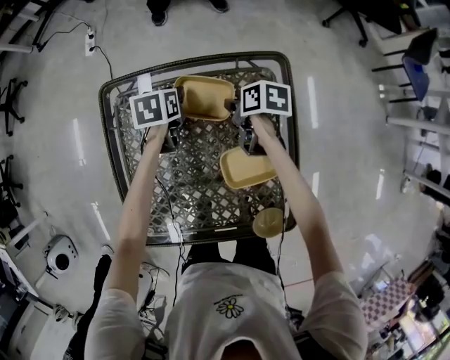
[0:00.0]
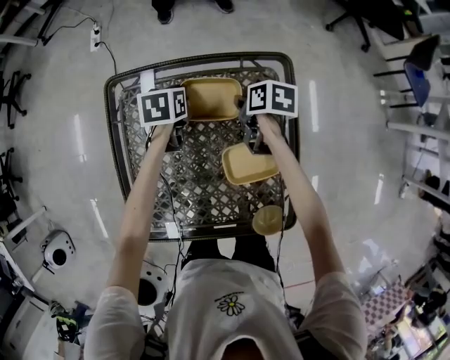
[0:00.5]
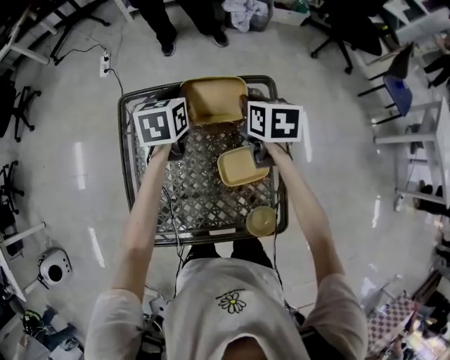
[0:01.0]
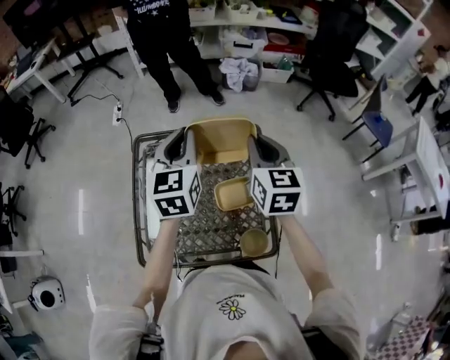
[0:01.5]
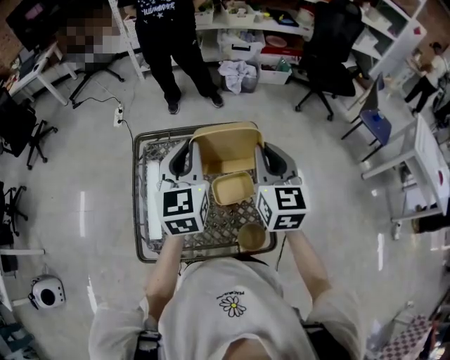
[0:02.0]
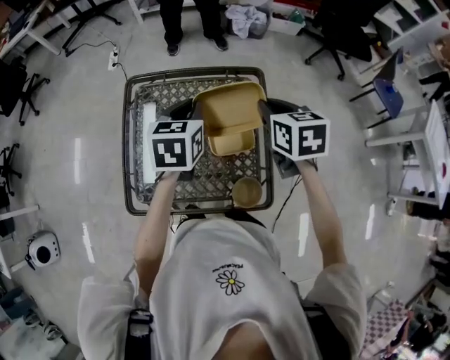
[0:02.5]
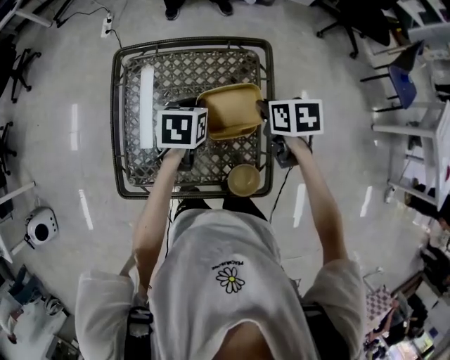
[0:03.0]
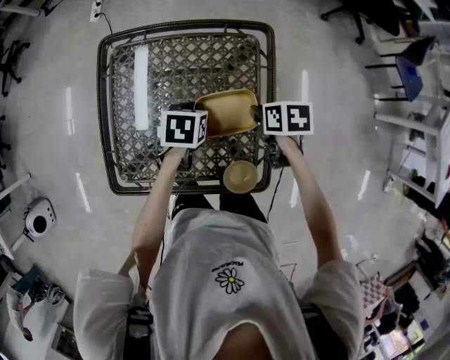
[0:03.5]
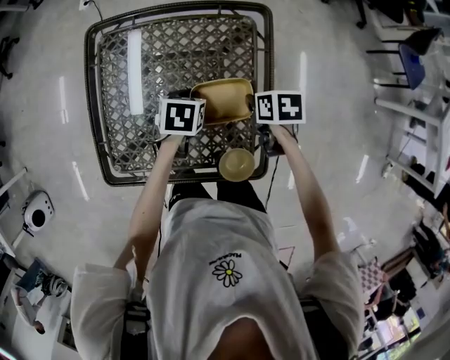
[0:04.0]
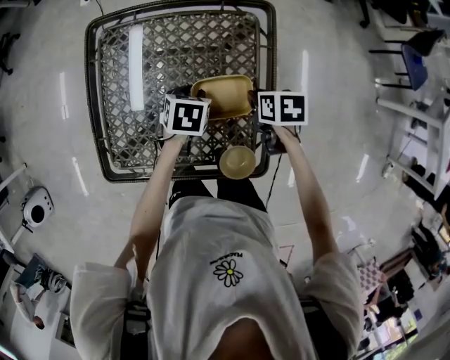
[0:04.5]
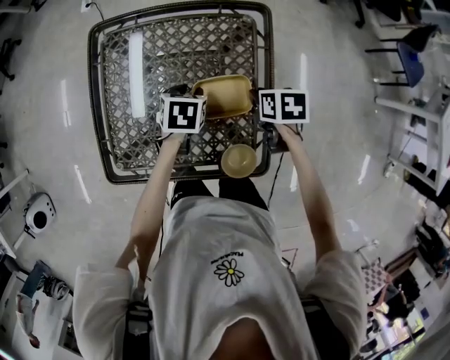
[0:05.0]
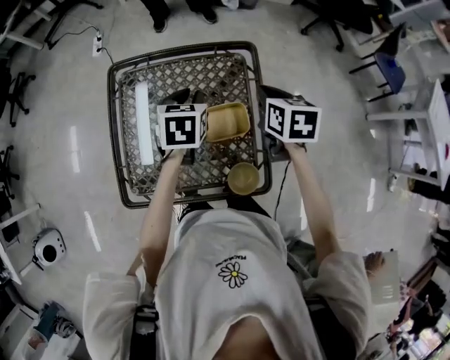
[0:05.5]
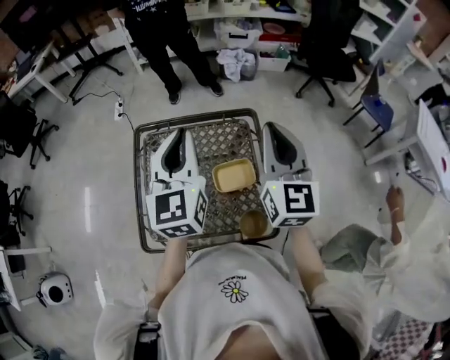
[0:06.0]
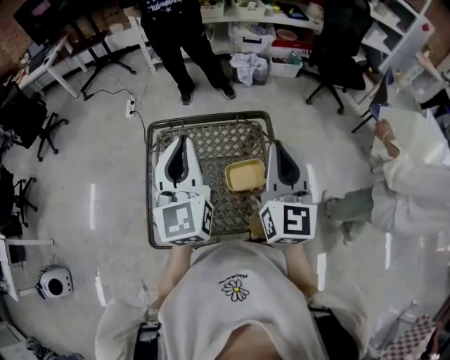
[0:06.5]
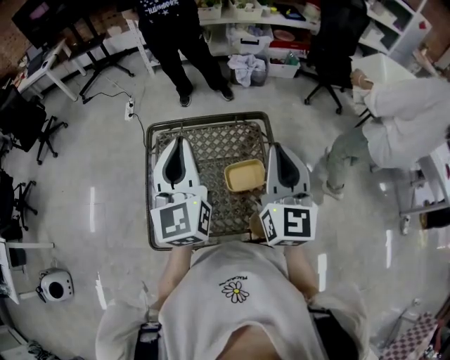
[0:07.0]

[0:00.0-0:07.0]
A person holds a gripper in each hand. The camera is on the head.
0:00.0 to 0:02.0: Both grippers travel together upward and backward, approximately 40 cm. The left gripper tips its fingers upward by approximately 50 degrees, and closes its fingers, while the right gripper points its fingers some 40 degrees further upward.
0:02.0 to 0:03.5: Both grippers travel together downward, roughly 35 cm. The right gripper points its fingers approximately 50 degrees further downward; the left gripper angles its fingers downward, by roughly 60 degrees.
0:03.5 to 0:05.0: The left gripper opens up.
0:05.0 to 0:07.0: Both grippers travel together upward, approximately 40 cm. The right gripper angles its fingers upward, by some 70 degrees. The left gripper tilts its fingers some 70 degrees upward, and closes its fingers.

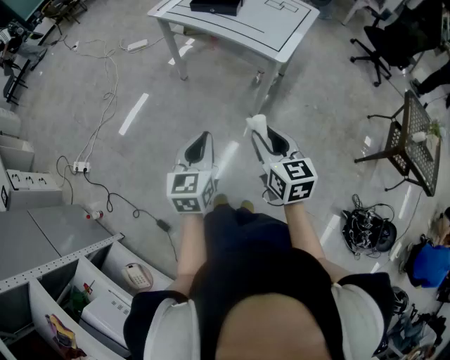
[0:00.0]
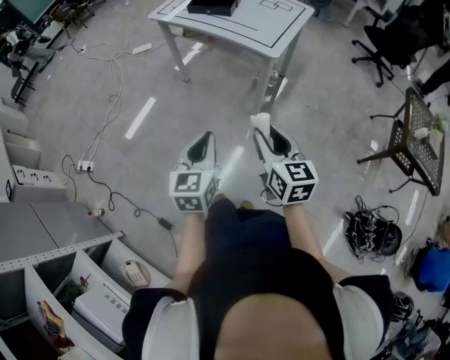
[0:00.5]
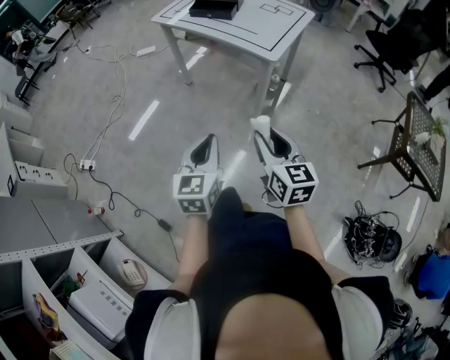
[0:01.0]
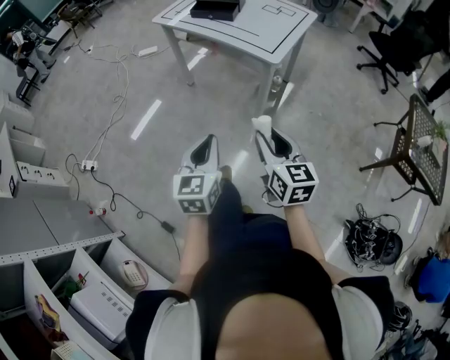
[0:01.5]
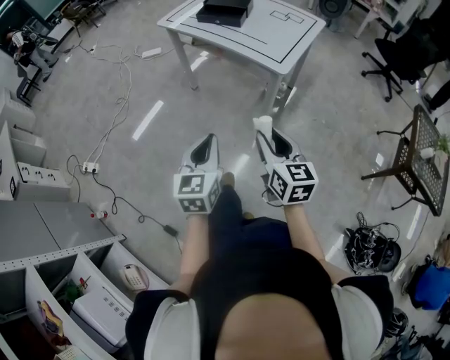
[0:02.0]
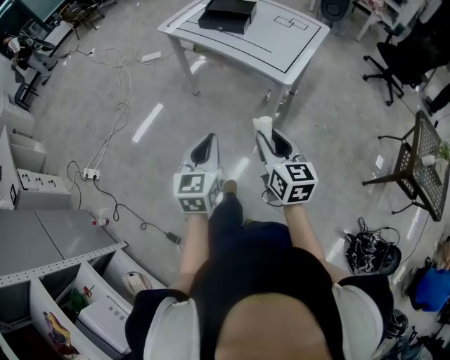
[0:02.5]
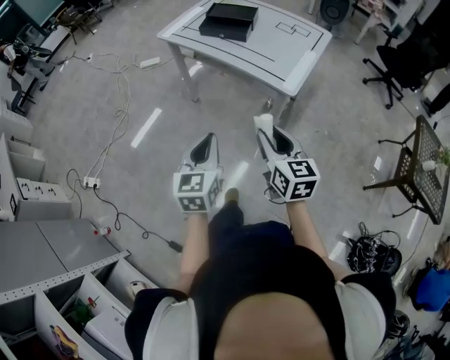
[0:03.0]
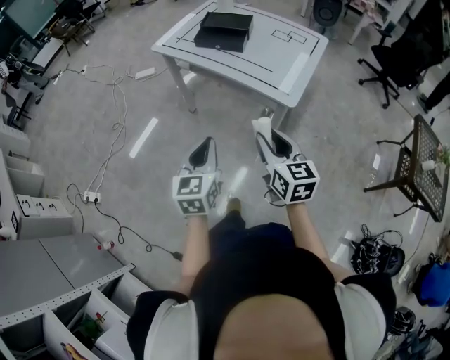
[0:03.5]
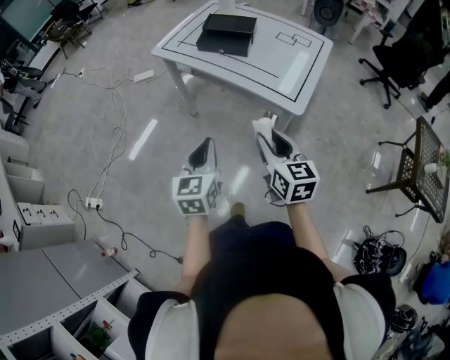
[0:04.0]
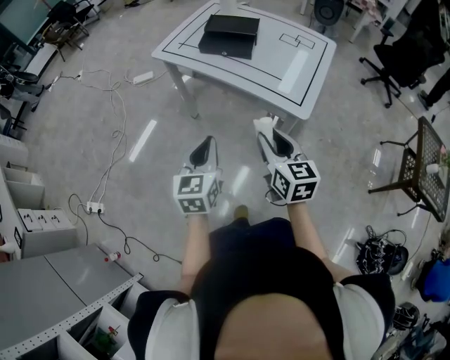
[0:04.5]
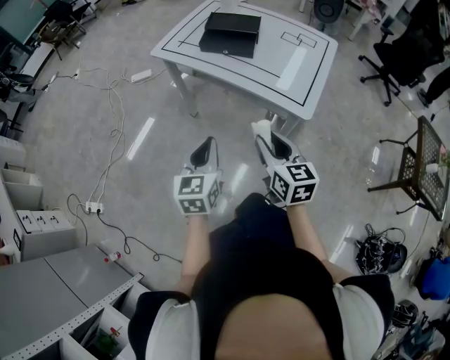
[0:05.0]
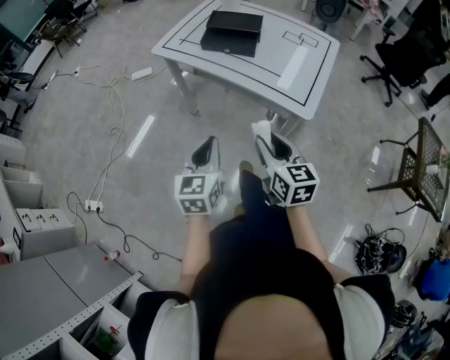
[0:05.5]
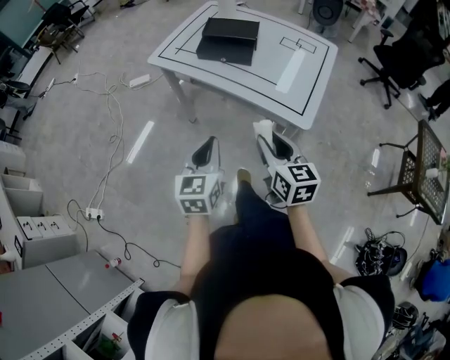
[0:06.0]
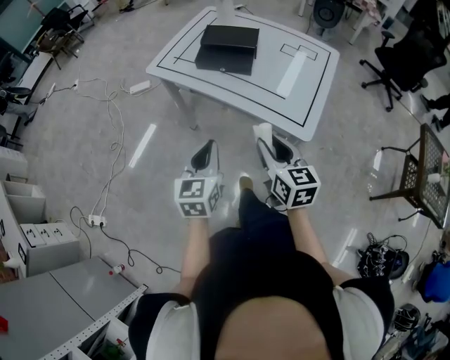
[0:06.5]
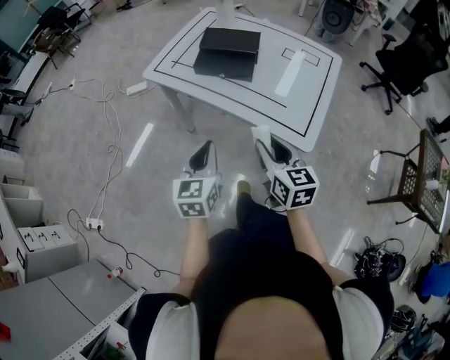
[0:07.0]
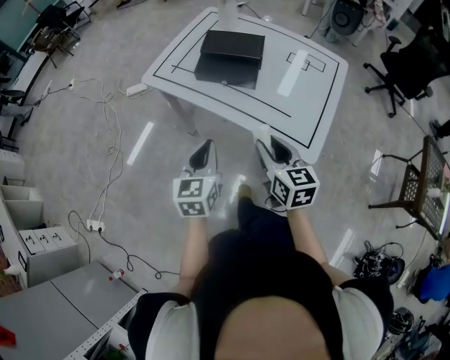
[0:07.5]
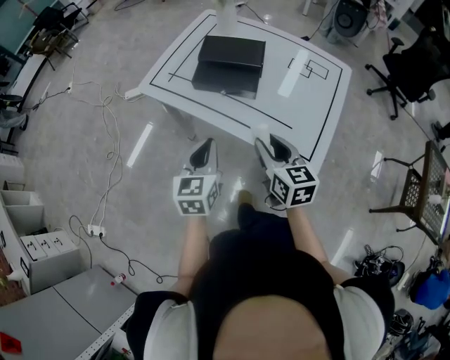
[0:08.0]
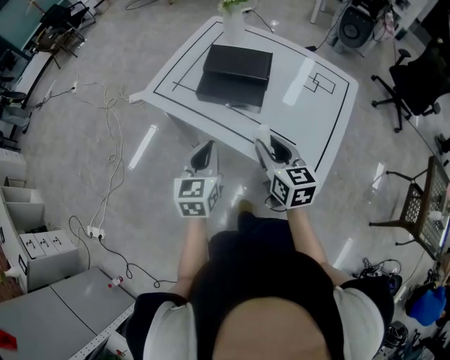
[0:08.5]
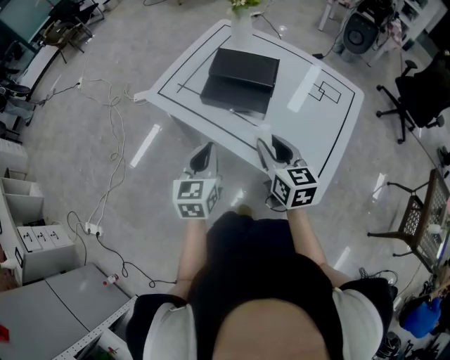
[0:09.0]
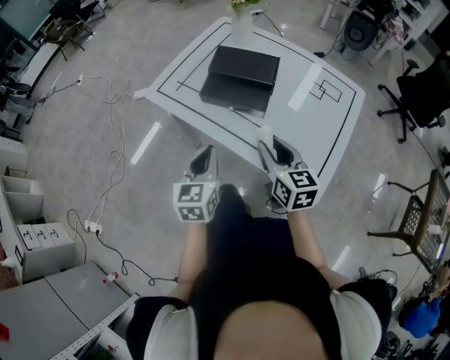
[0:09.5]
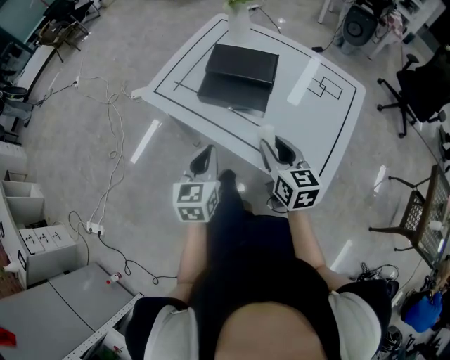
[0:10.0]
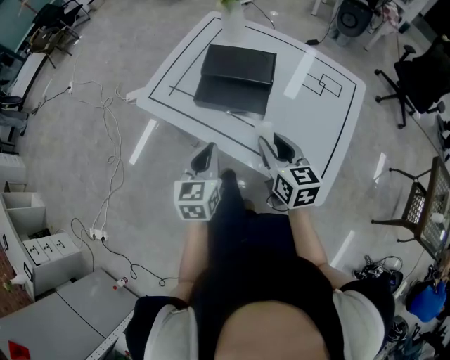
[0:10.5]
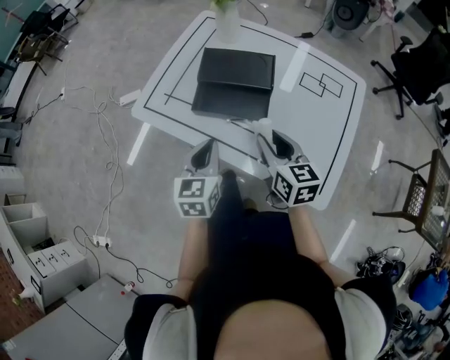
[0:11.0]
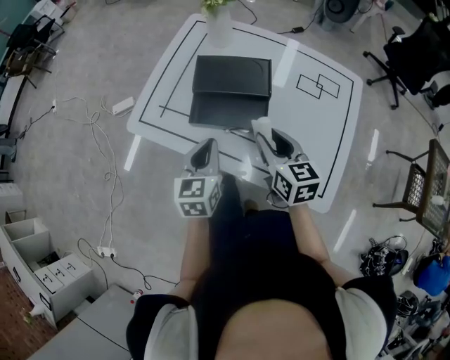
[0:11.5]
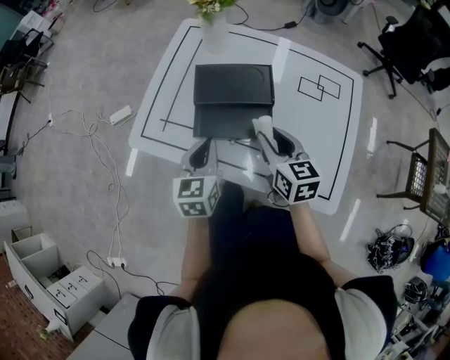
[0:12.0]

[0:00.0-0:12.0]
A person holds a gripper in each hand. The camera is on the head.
0:00.0 to 0:02.0: The grippers both shift to the right by roughly 5 cm.
0:02.0 to 0:04.0: Both grippers travel together forward, roughly 20 cm.
0:04.0 to 0:06.0: Both grippers travel together forward, about 5 cm.
0:06.0 to 0:08.0: The two grippers go about 20 cm forward.
0:08.0 to 0:10.0: The grippers both shift forward by some 5 cm.
0:10.0 to 0:12.0: Both grippers travel together forward, roughly 15 cm.

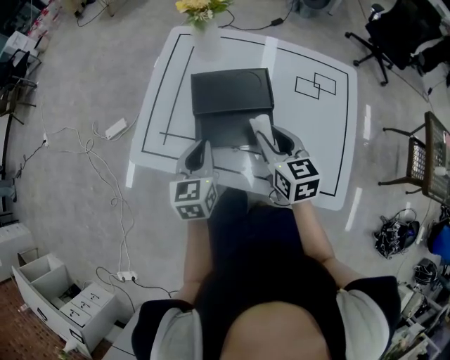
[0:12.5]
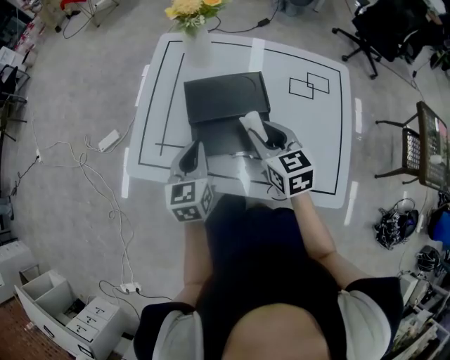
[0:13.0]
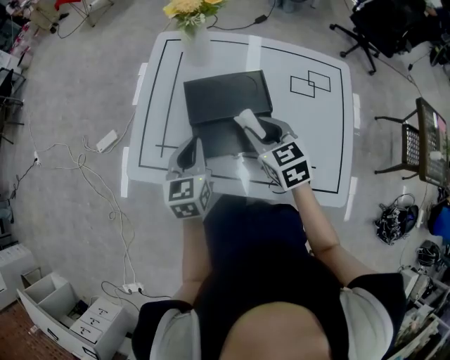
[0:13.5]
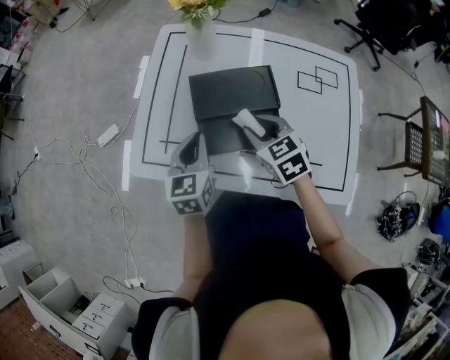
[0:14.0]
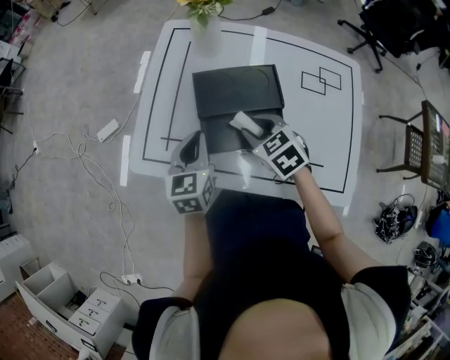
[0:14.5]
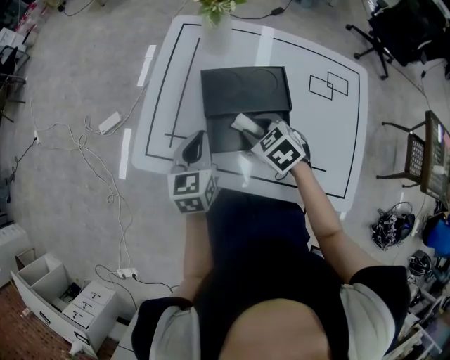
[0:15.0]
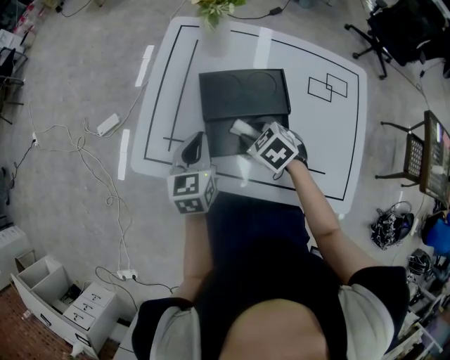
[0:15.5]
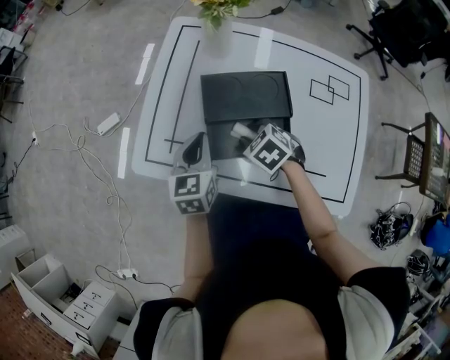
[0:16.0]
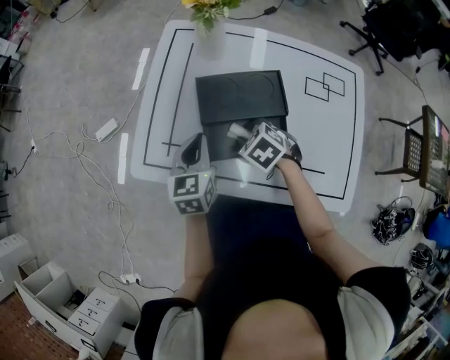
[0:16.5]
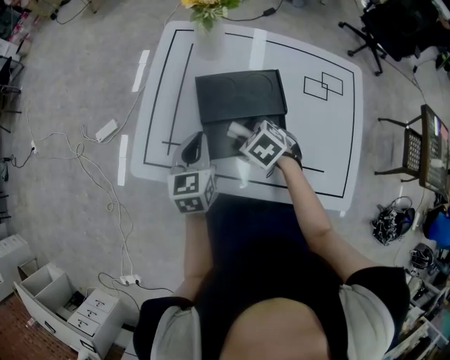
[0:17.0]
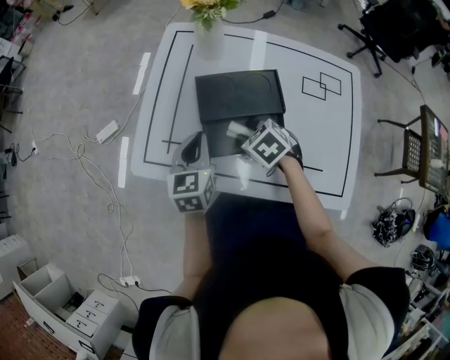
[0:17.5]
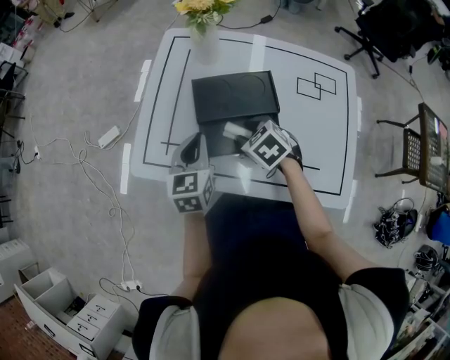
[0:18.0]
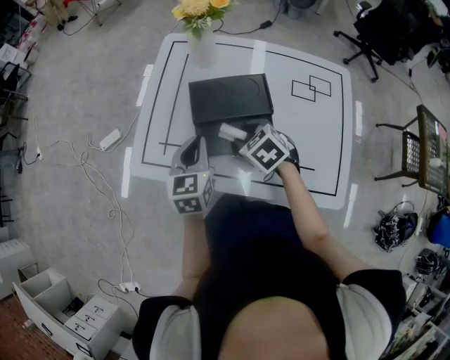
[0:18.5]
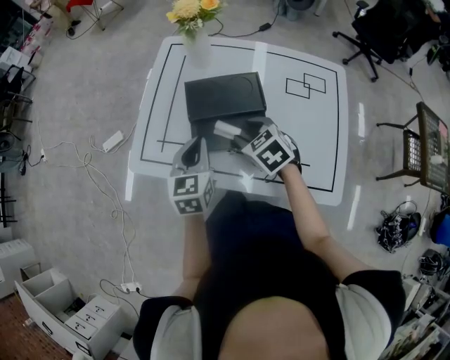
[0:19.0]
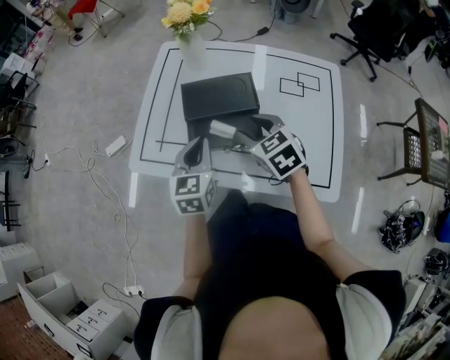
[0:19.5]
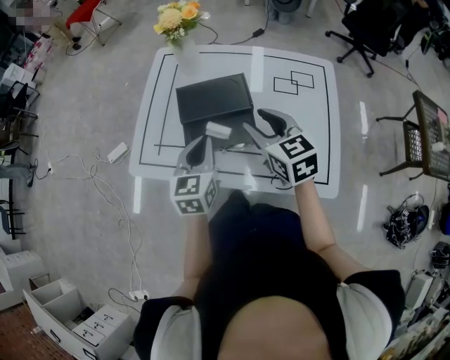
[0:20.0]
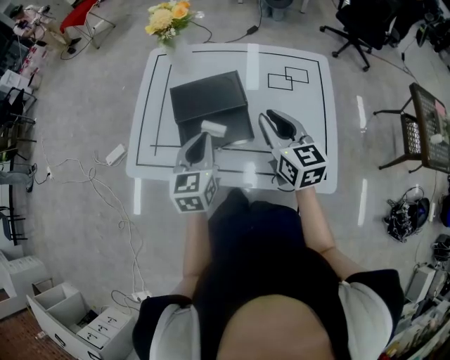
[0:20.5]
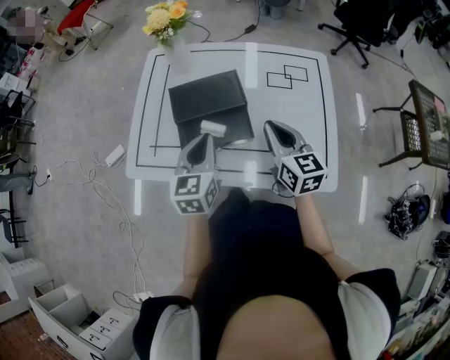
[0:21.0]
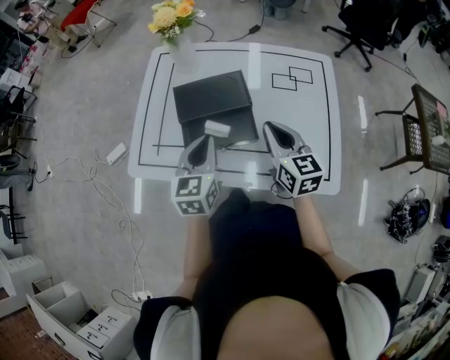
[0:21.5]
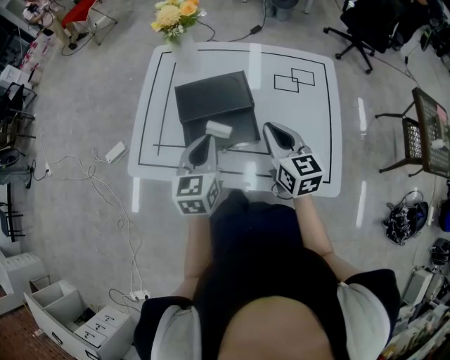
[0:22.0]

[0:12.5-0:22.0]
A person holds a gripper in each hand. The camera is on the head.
0:12.5 to 0:14.5: The left gripper moves about 5 cm. Meanwhile the right gripper shifts some 10 cm to the left and downward, and swivels approximately 30 degrees.
0:14.5 to 0:16.5: The right gripper shifts about 5 cm downward.
0:16.5 to 0:18.0: The grippers move only a little.
0:18.0 to 0:20.0: The right gripper shifts roughly 20 cm upward and to the right, and tilts its fingers some 40 degrees upward. Meanwhile the left gripper heads to the right, backward and upward, covering approximately 10 cm.
0:20.0 to 0:22.0: The right gripper ends up approximately 5 cm from where it was, and closes.
